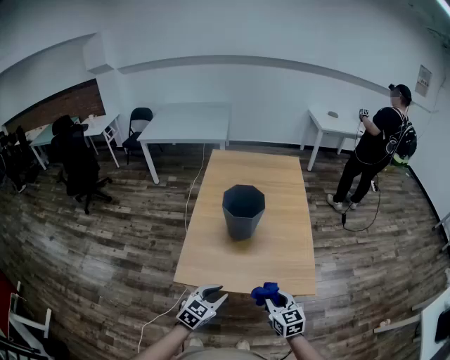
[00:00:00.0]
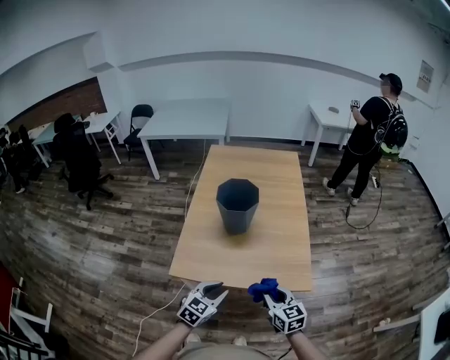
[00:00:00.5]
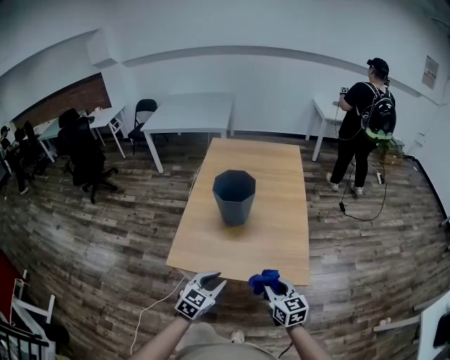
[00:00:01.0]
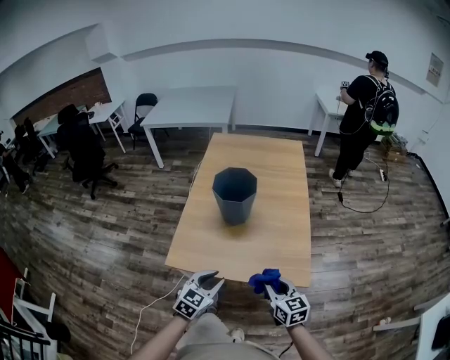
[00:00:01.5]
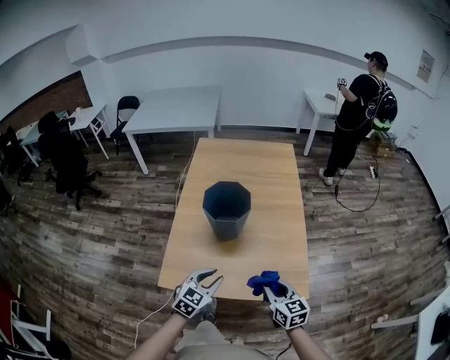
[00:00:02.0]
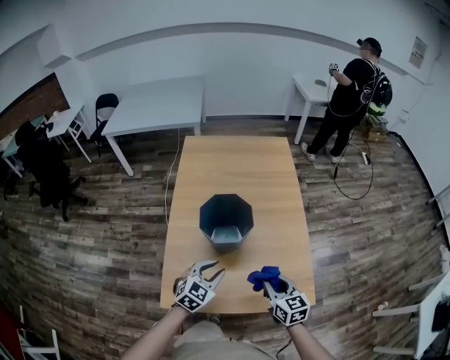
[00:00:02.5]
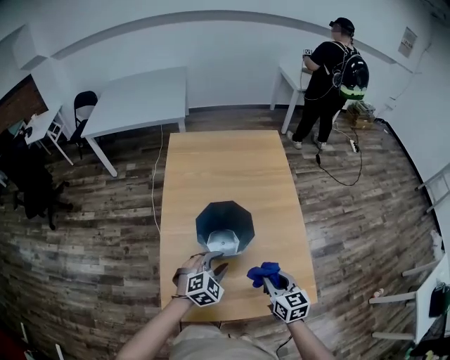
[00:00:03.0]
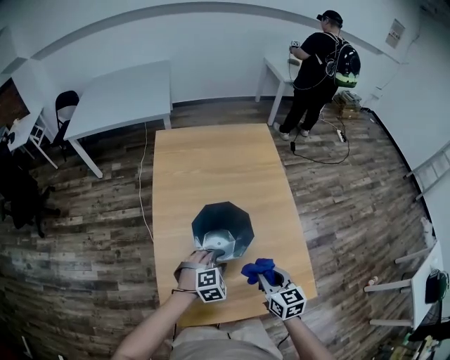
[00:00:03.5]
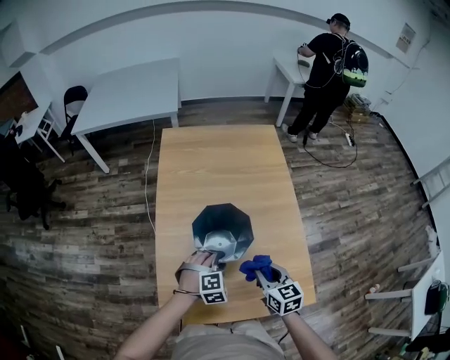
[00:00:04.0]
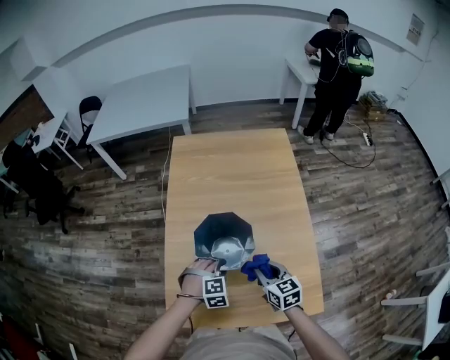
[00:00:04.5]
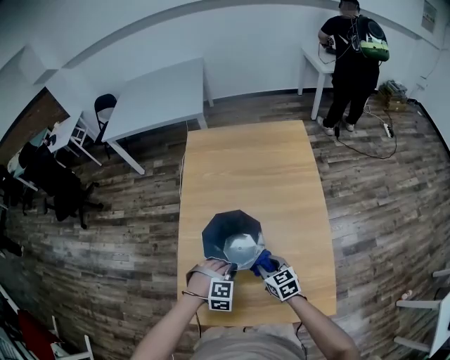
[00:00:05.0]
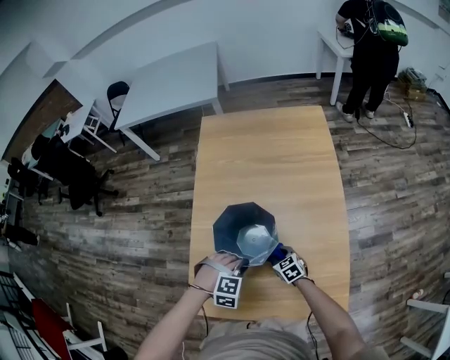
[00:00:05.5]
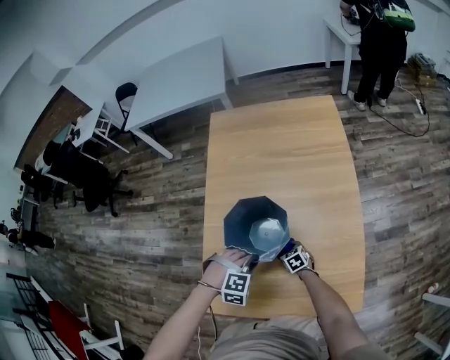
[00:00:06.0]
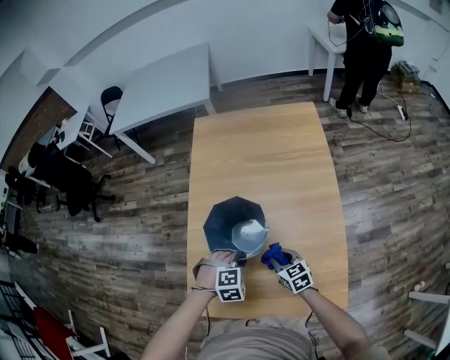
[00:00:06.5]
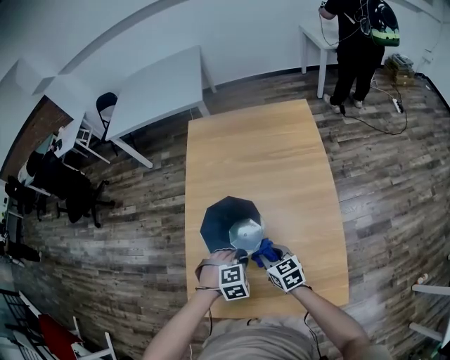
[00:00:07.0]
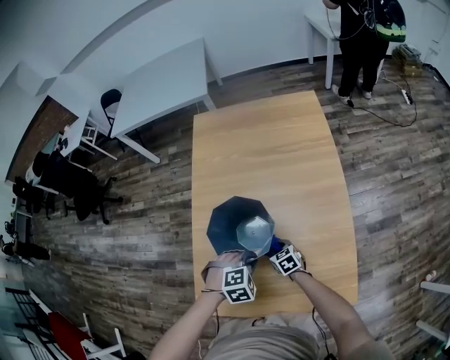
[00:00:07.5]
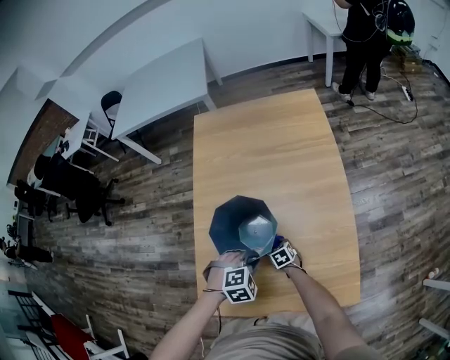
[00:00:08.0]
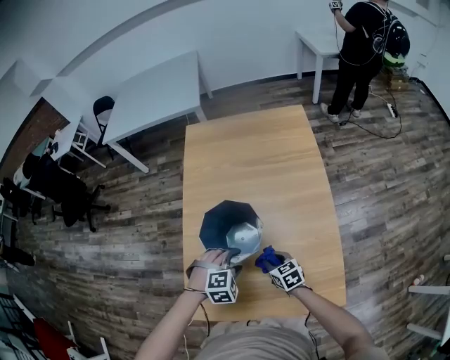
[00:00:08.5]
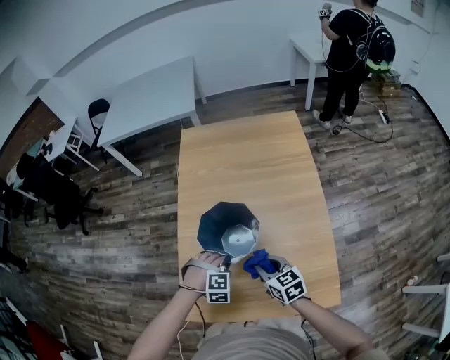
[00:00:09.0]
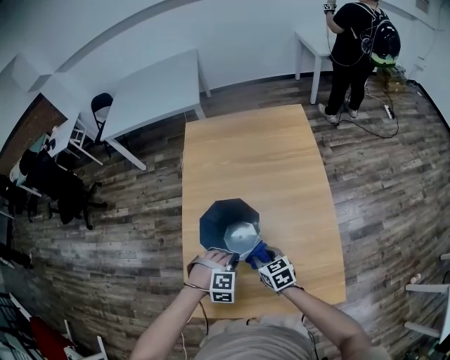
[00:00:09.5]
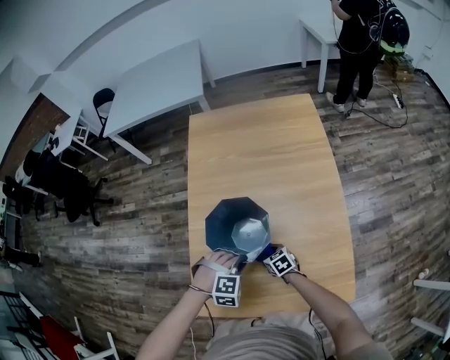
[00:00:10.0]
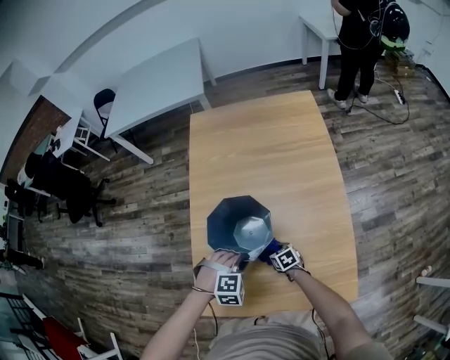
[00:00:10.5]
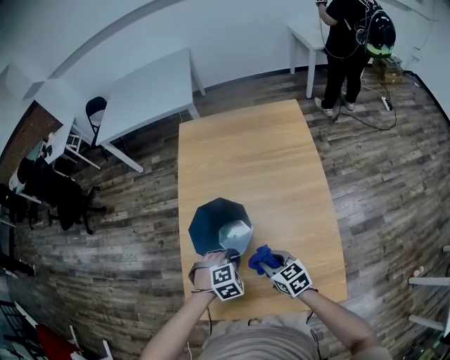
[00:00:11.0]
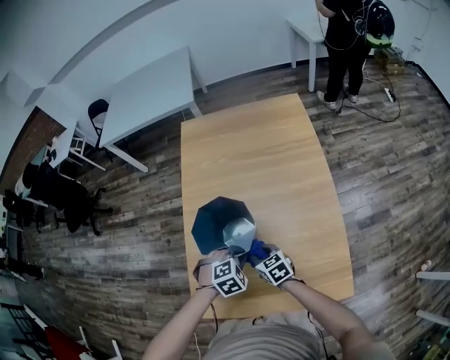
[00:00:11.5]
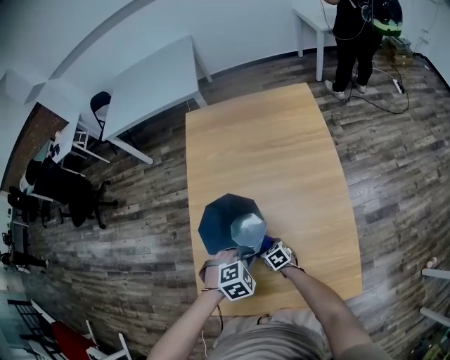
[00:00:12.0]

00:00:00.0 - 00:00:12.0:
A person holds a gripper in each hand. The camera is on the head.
00:00:00.0 - 00:00:02.0: The right gripper heads forward and to the right, covering roughly 15 cm, while the left gripper moves forward, roughly 15 cm.
00:00:02.0 - 00:00:04.0: The right gripper is displaced forward and to the left by roughly 25 cm. The left gripper heads forward, covering approximately 25 cm, and rotates around the line of its fingers by roughly 50 degrees, clockwise from behind.
00:00:04.0 - 00:00:06.0: The left gripper closes. The right gripper heads downward, covering about 30 cm, and rotates approximately 30 degrees.
00:00:06.0 - 00:00:08.0: The left gripper swivels approximately 20 degrees; the right gripper moves some 20 cm upward and comes back.
00:00:08.0 - 00:00:10.0: The right gripper moves approximately 30 cm upward and comes back. Meanwhile the left gripper travels to the left by about 5 cm, swivels about 20 degrees, and opens, then closes again.
00:00:10.0 - 00:00:12.0: The left gripper turns by about 30 degrees, while the right gripper goes upward and returns, some 20 cm each way.

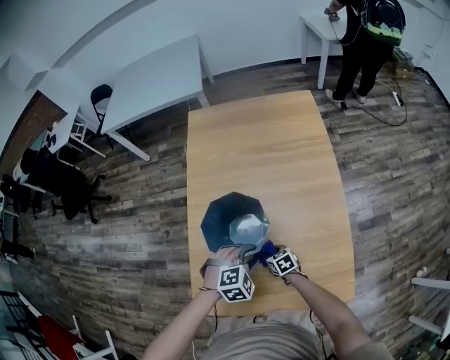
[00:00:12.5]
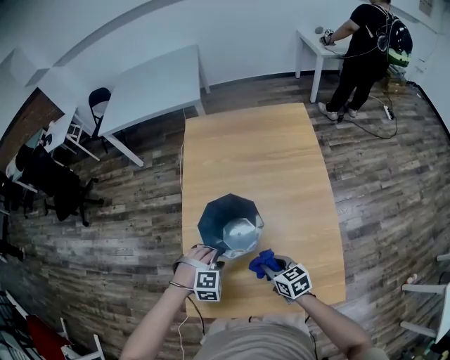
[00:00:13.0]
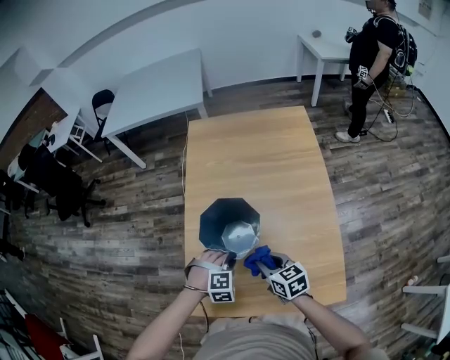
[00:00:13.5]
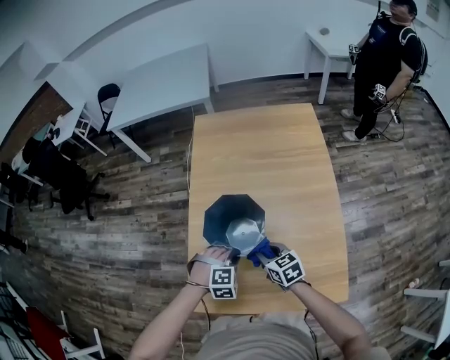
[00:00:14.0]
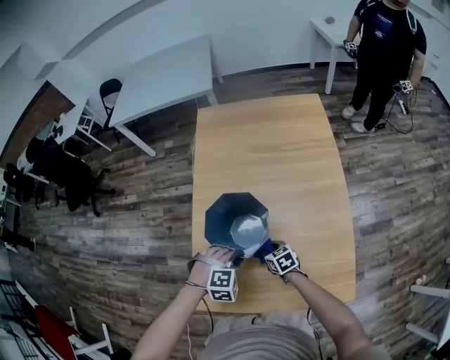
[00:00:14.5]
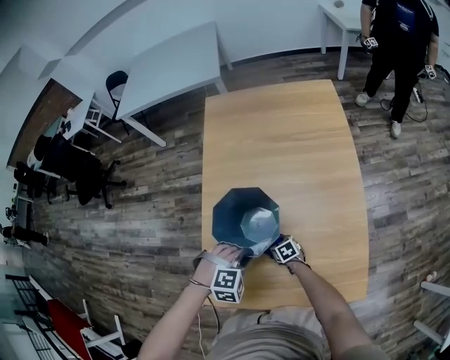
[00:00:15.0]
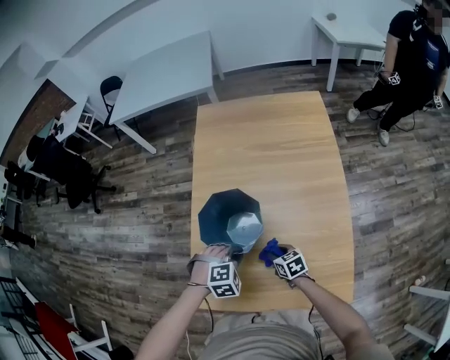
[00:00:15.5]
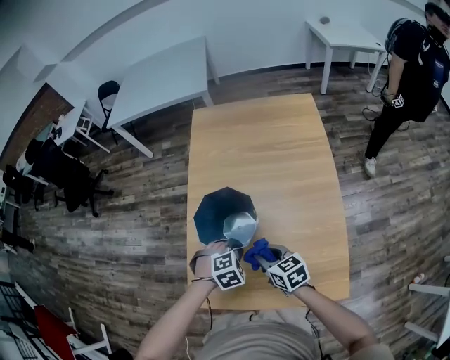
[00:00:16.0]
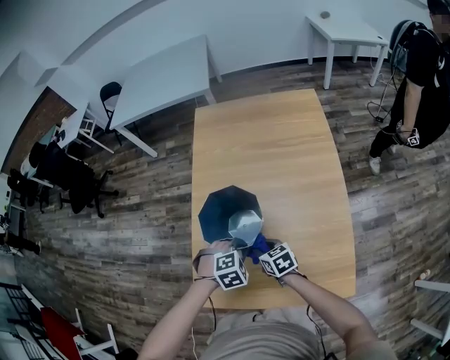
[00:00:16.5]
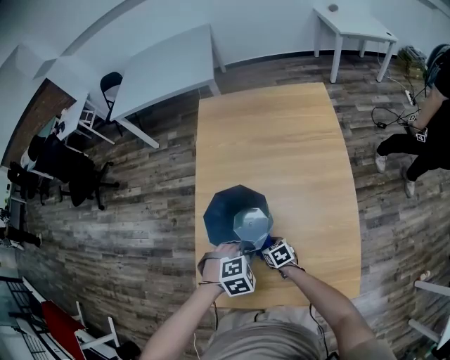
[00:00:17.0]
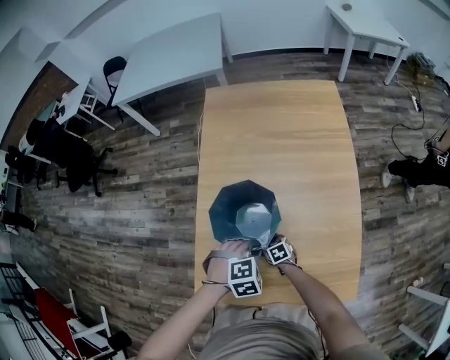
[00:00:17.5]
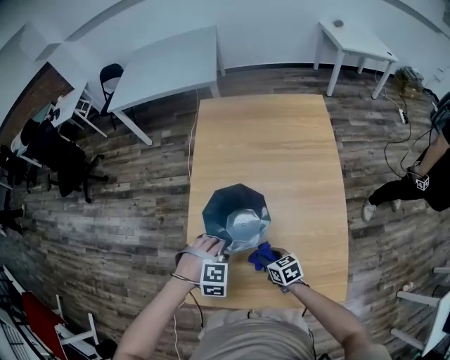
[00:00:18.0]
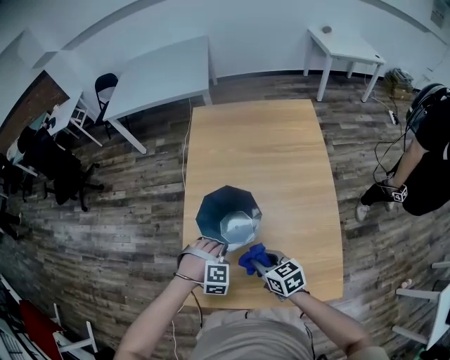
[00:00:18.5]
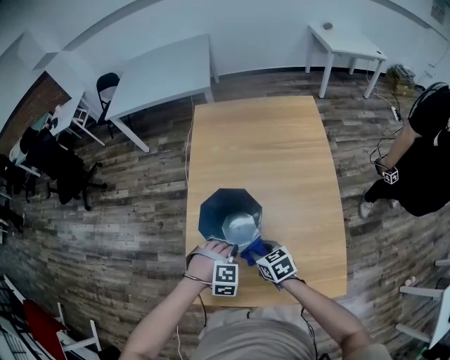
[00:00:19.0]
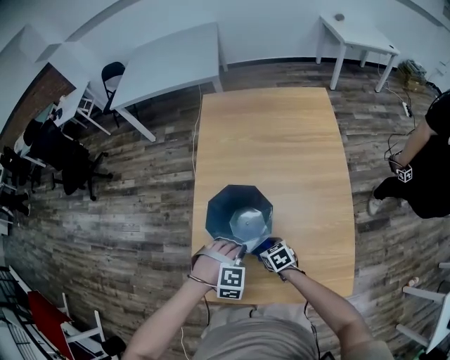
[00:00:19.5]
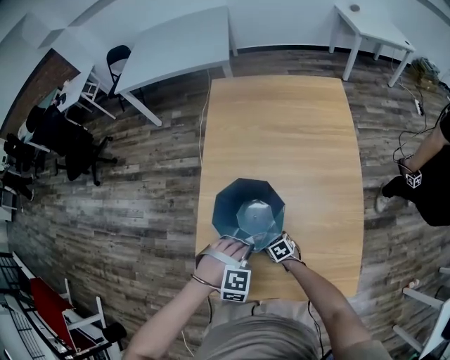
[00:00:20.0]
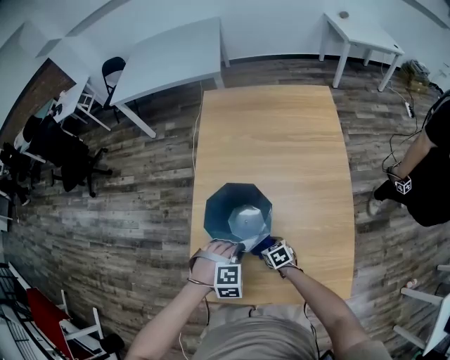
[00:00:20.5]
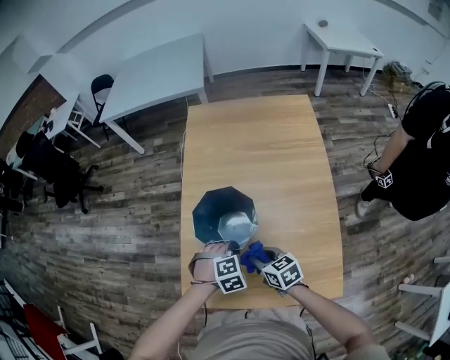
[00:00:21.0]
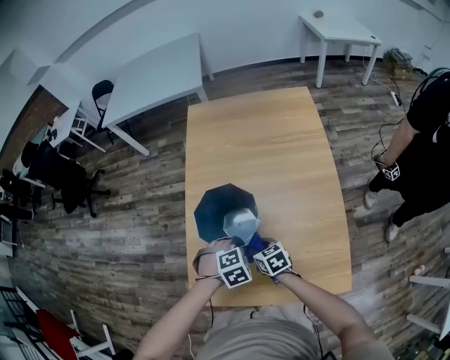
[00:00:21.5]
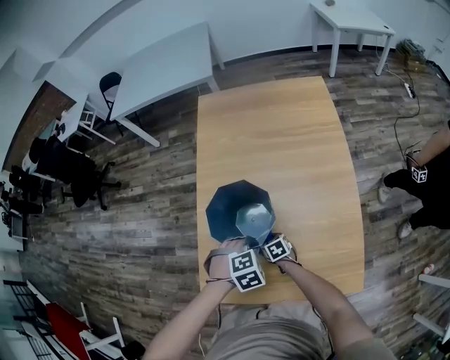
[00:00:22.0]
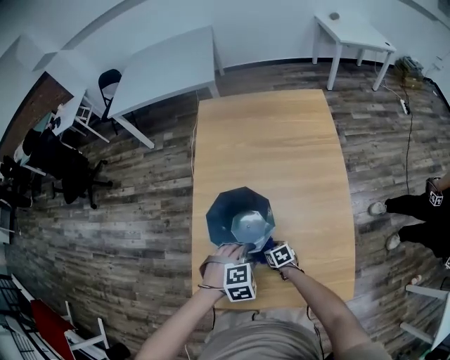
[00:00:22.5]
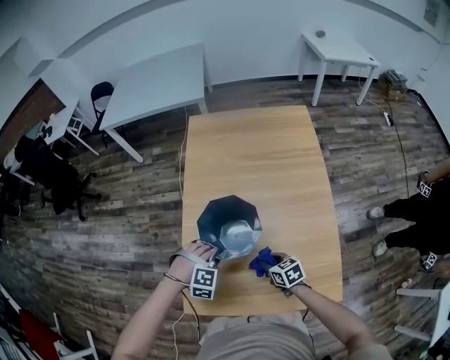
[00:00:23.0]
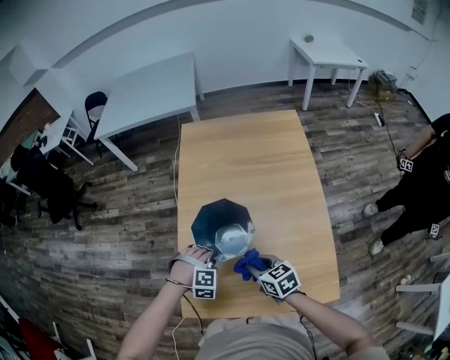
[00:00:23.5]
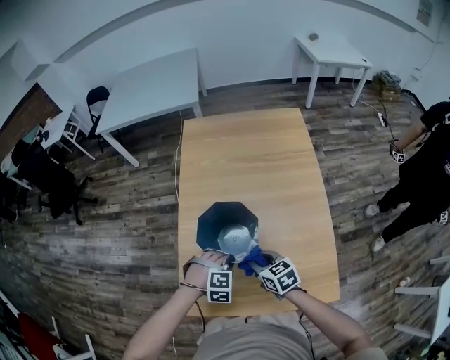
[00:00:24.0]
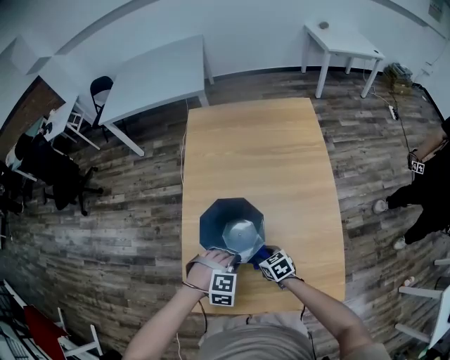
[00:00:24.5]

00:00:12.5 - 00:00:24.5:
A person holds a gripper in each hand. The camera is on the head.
00:00:12.5 - 00:00:14.5: The left gripper moves to the left, roughly 5 cm, and closes its fingers; the right gripper reaches roughly 25 cm upward, then returns.
00:00:14.5 - 00:00:16.5: The right gripper moves up and down over some 25 cm, changing direction 2 times.
00:00:16.5 - 00:00:18.5: The right gripper goes downward and returns, about 20 cm each way; the left gripper goes some 5 cm to the left, changes its angle by approximately 30 degrees, and opens and closes again.
00:00:18.5 - 00:00:20.5: The right gripper moves downward, about 20 cm, and swivels some 20 degrees.
00:00:20.5 - 00:00:22.5: The right gripper reaches some 20 cm upward, then returns; the left gripper opens its fingers.
00:00:22.5 - 00:00:24.5: The left gripper reaches approximately 10 cm to the left, then returns, and closes up, while the right gripper is displaced upward by about 10 cm.

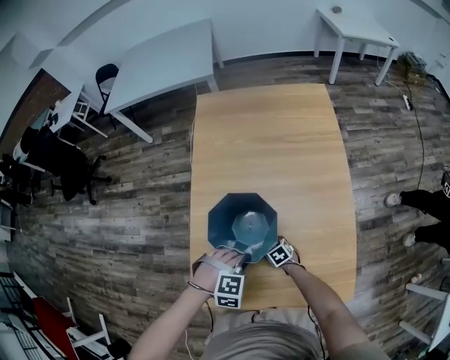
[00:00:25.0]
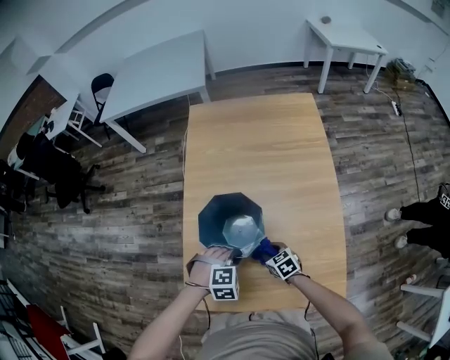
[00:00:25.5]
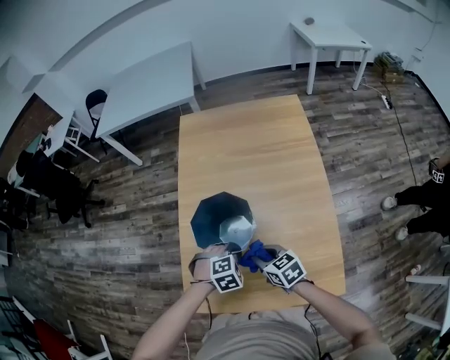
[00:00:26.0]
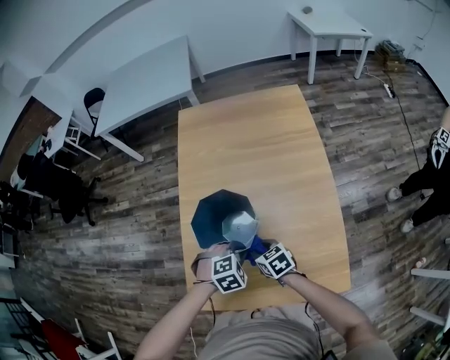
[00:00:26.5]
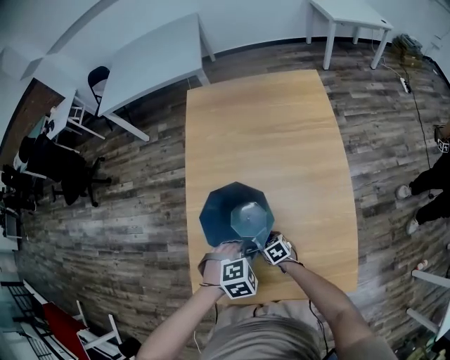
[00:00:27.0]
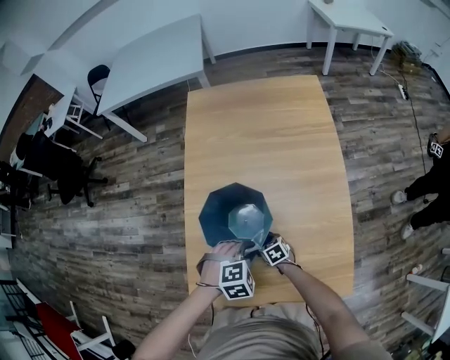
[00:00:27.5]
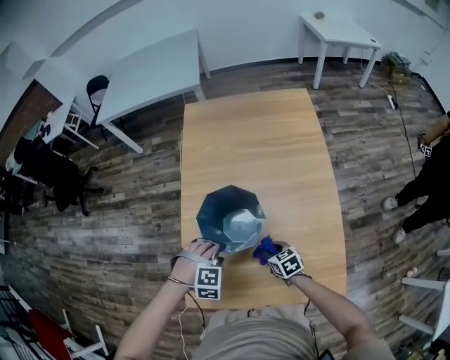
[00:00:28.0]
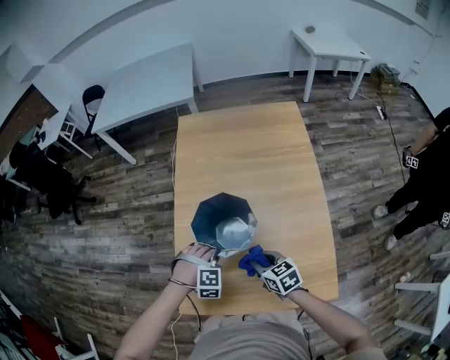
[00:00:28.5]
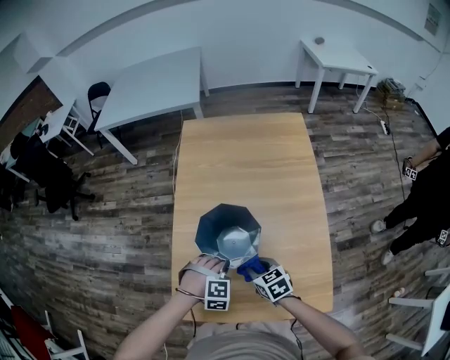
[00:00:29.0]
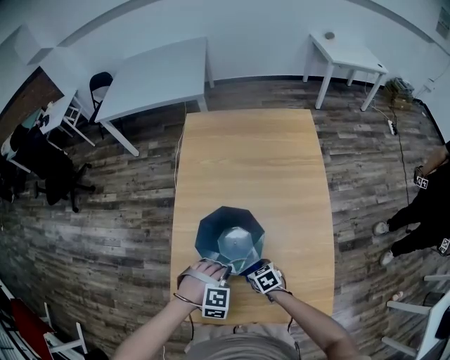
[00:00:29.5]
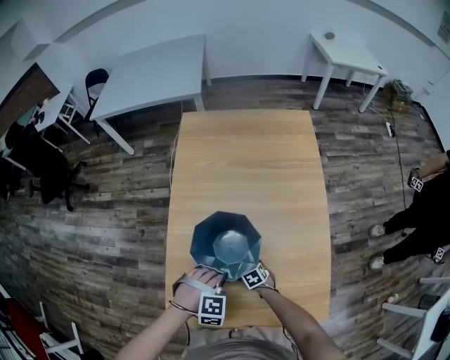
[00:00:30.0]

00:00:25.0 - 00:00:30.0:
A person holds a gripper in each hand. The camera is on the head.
00:00:25.0 - 00:00:27.5: The left gripper turns by roughly 20 degrees. The right gripper moves approximately 25 cm upward and comes back.
00:00:27.5 - 00:00:30.0: The left gripper rotates roughly 20 degrees, and opens, then closes again, while the right gripper travels upward and back again, roughly 25 cm each way.
